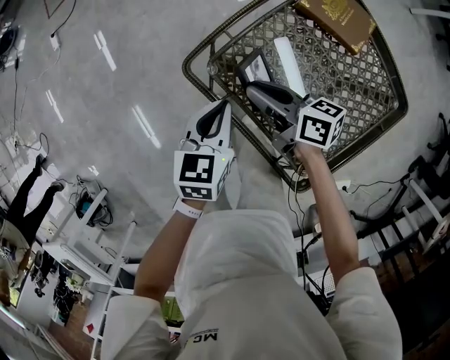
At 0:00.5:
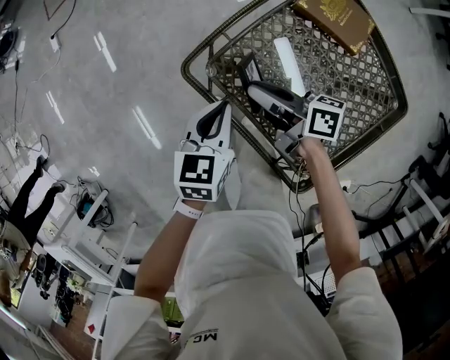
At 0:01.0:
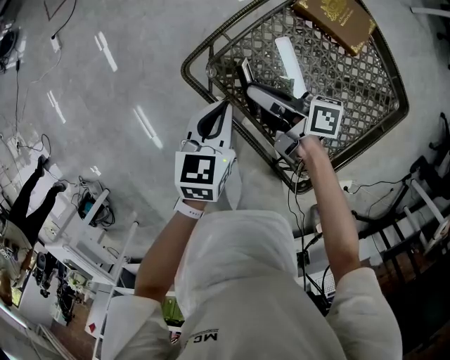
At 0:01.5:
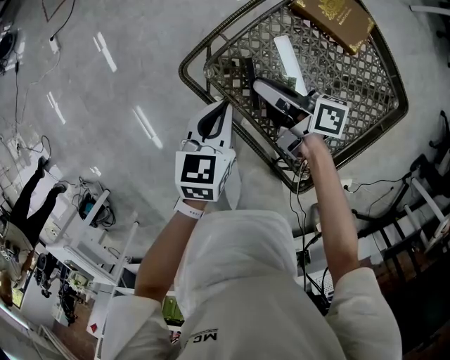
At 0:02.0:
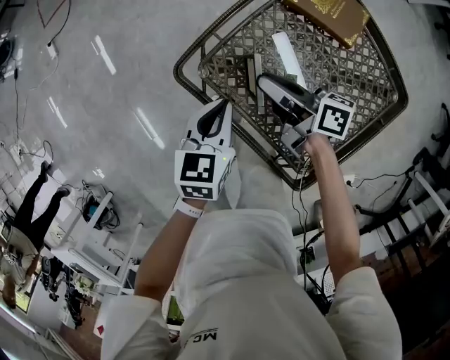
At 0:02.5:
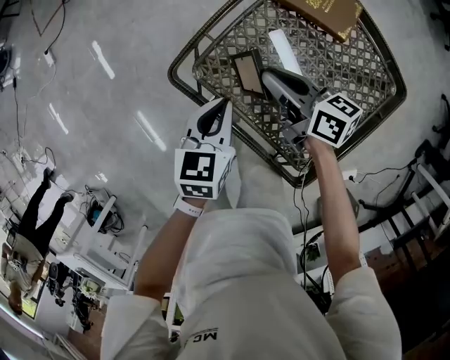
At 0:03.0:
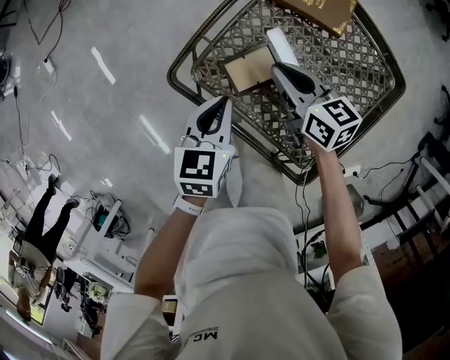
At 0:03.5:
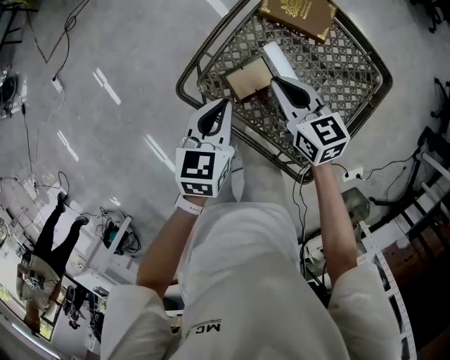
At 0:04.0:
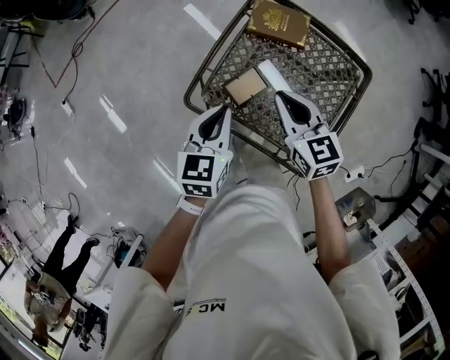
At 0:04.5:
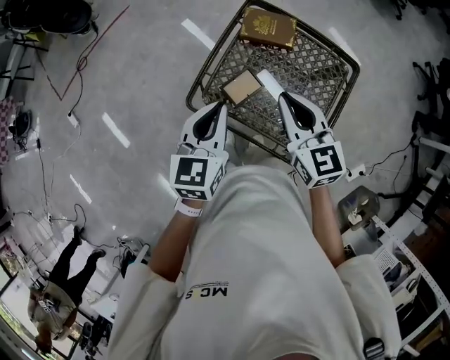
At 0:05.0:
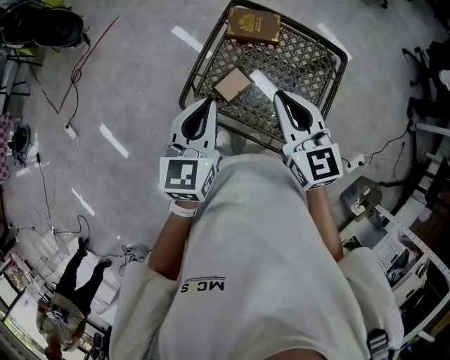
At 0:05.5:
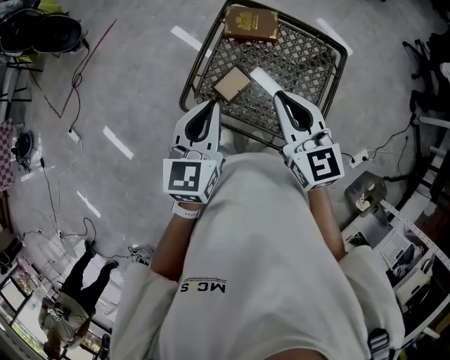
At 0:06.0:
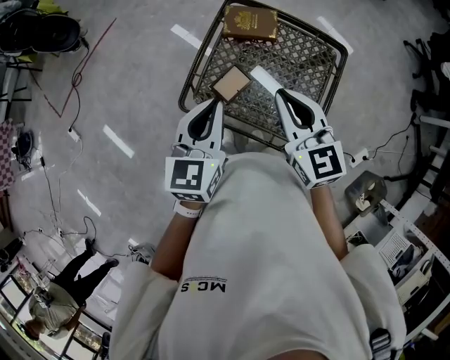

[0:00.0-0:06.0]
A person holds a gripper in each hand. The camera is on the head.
0:00.0 to 0:02.0: The right gripper travels to the right by approximately 5 cm.
0:02.0 to 0:04.0: Both grippers travel together upward, some 15 cm. The right gripper changes its angle by approximately 60 degrees.
0:04.0 to 0:06.0: The left gripper shifts roughly 10 cm upward. Meanwhile the right gripper shifts roughly 15 cm upward and backward.

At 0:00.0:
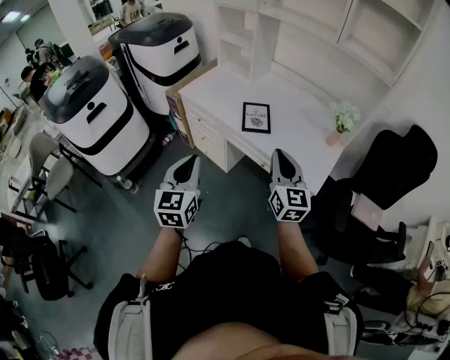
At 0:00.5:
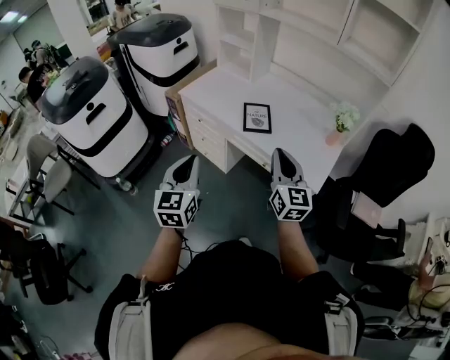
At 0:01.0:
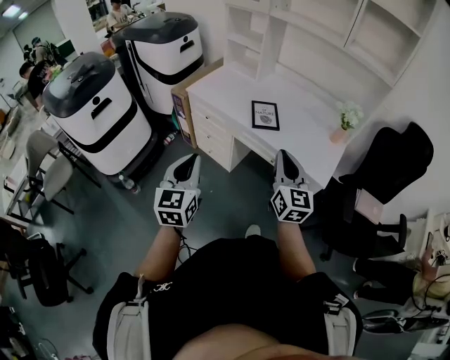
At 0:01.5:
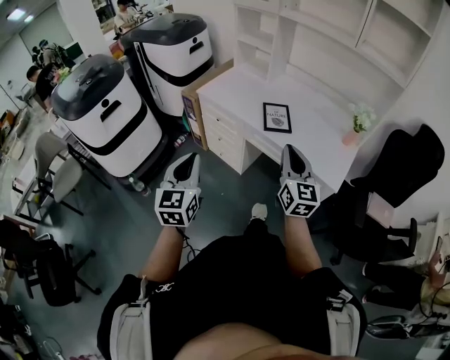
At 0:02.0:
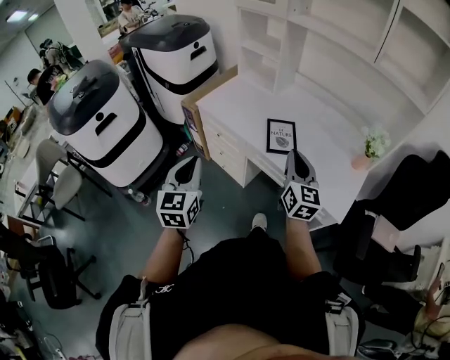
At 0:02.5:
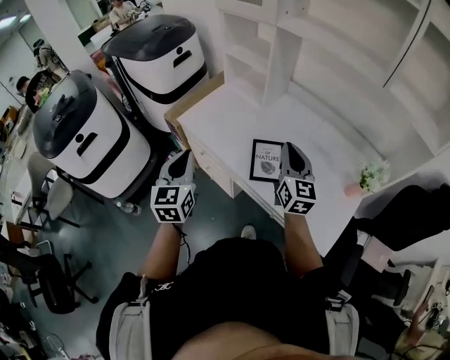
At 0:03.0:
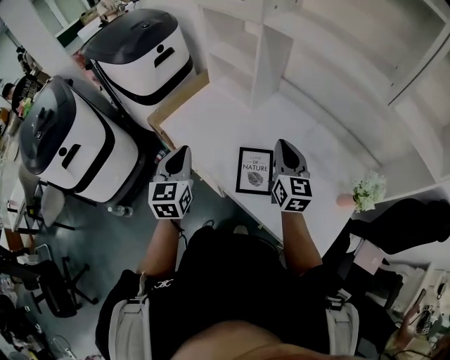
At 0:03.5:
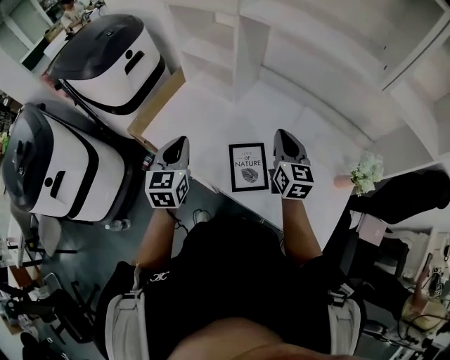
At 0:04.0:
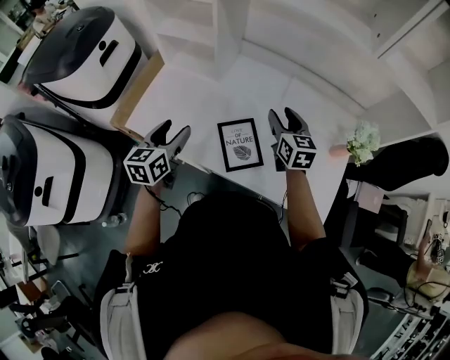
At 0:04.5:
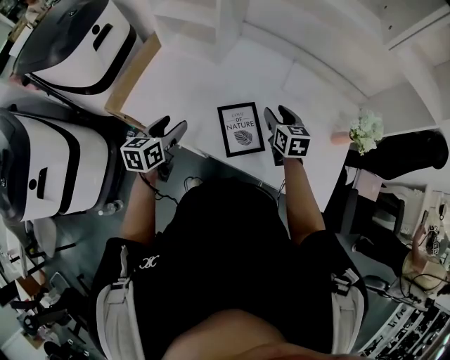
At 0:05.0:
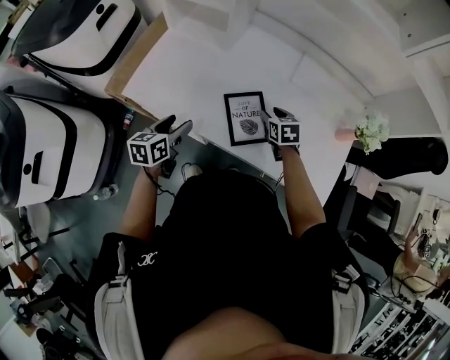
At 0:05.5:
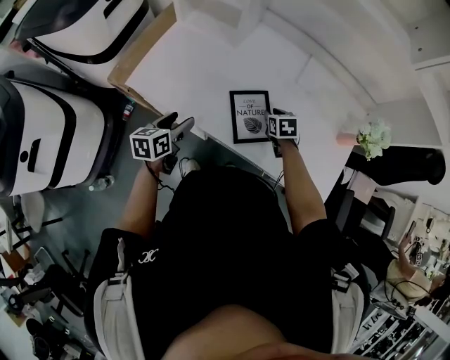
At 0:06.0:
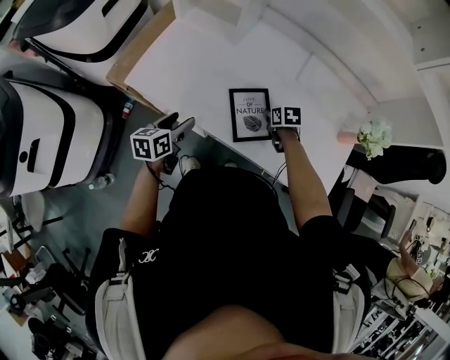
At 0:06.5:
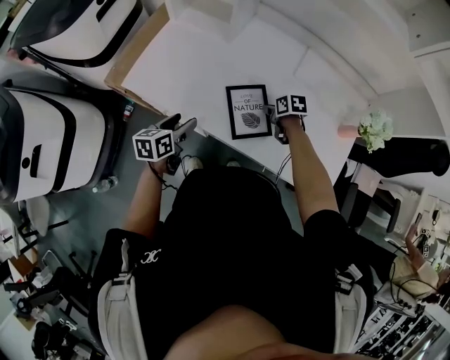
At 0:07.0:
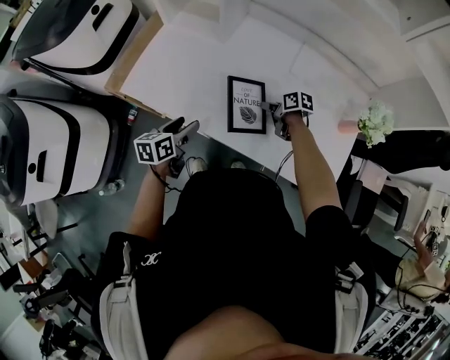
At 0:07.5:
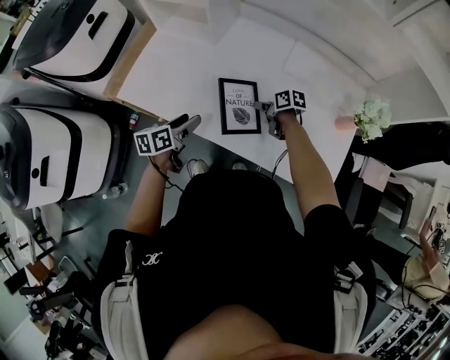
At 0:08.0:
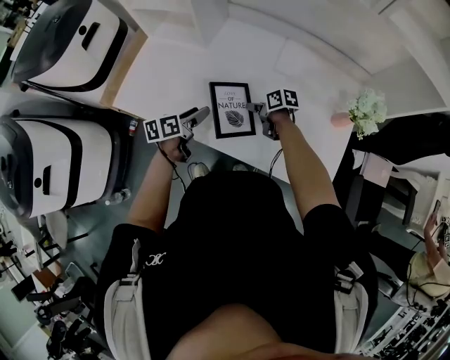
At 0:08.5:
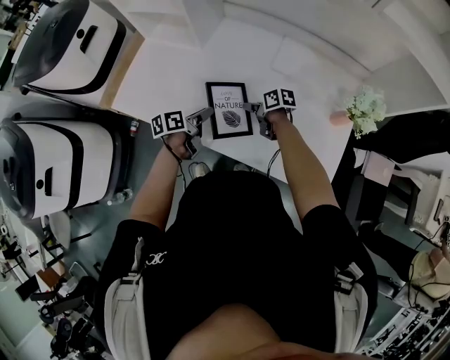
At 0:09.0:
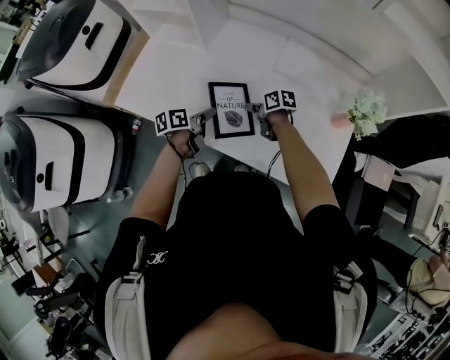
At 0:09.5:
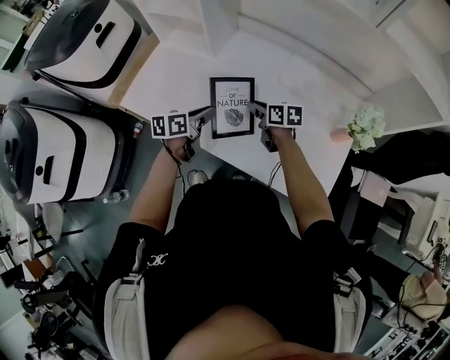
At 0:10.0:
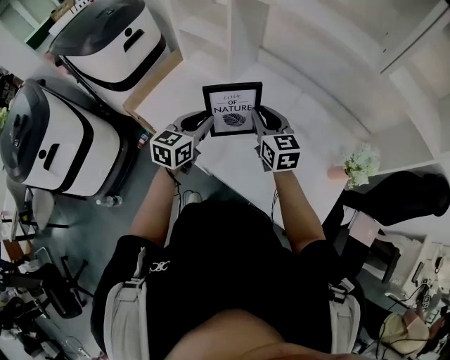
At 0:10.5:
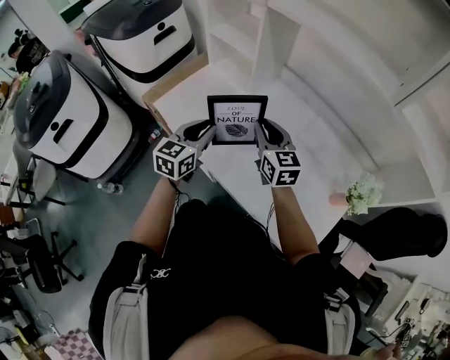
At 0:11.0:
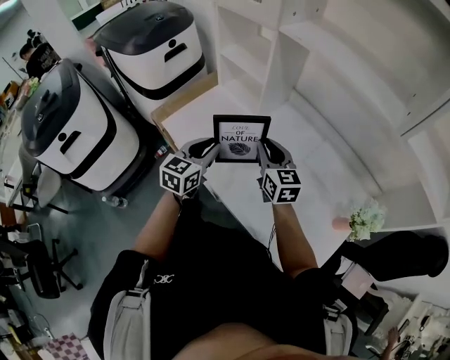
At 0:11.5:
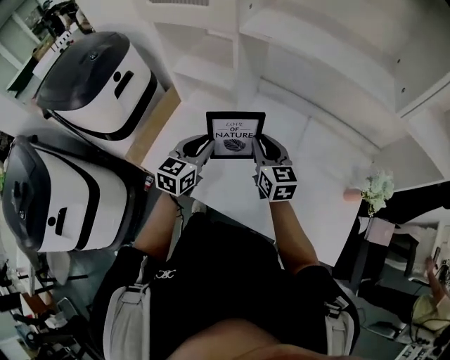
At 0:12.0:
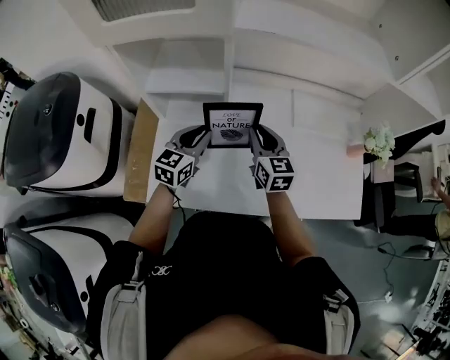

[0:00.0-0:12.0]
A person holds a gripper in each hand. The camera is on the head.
0:00.0 to 0:02.0: The left gripper moves forward and to the left, approximately 15 cm. The right gripper travels forward by some 15 cm.
0:02.0 to 0:04.0: The grippers both shift forward by about 35 cm. The left gripper changes its angle by some 30 degrees, and opens its fingers. Meanwhile the right gripper rotates some 20 degrees, and opens up.
0:04.0 to 0:06.0: The left gripper is displaced downward by approximately 15 cm, and turns by some 20 degrees. The right gripper heads downward, covering some 25 cm, angles its fingers downward, by some 40 degrees, and closes.
0:06.0 to 0:08.0: The right gripper changes its angle by approximately 30 degrees. The left gripper goes roughly 15 cm to the right.
0:08.0 to 0:10.0: The right gripper travels upward by some 25 cm, and rotates about 60 degrees. Meanwhile the left gripper shifts some 15 cm upward, swivels some 40 degrees, and closes its fingers.
0:10.0 to 0:12.0: The left gripper ends up roughly 20 cm from where it was, and rotates roughly 30 degrees; the right gripper shifts by roughly 15 cm, and changes its angle by some 40 degrees.

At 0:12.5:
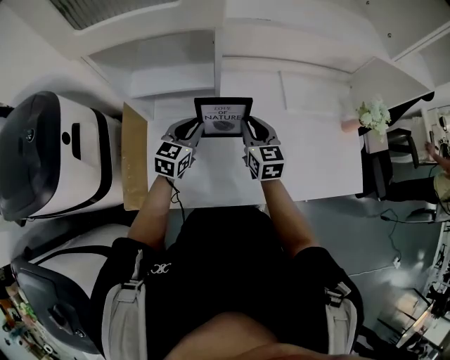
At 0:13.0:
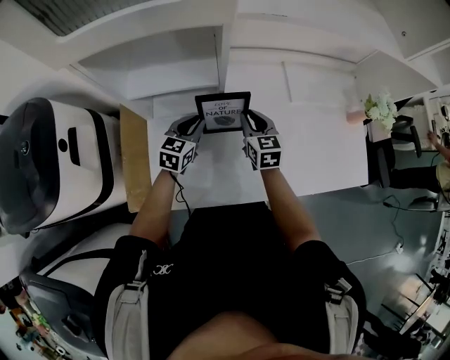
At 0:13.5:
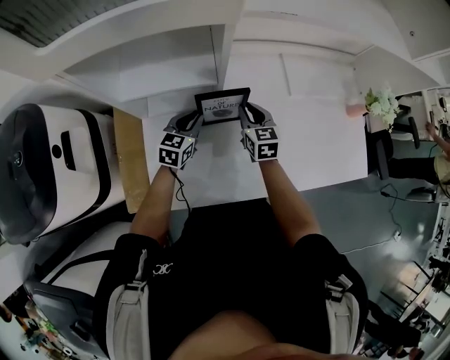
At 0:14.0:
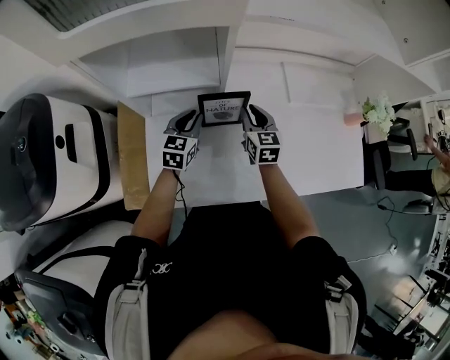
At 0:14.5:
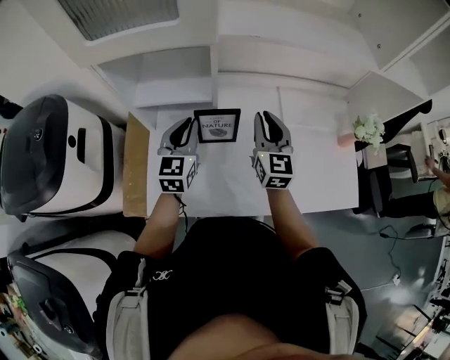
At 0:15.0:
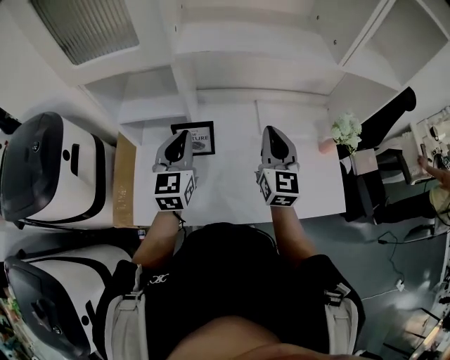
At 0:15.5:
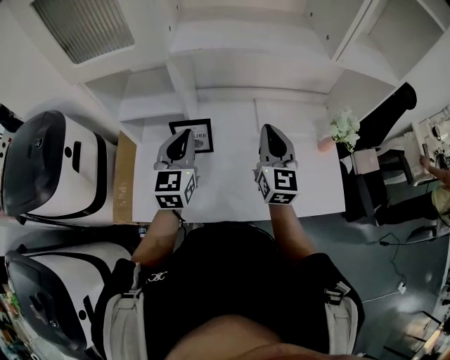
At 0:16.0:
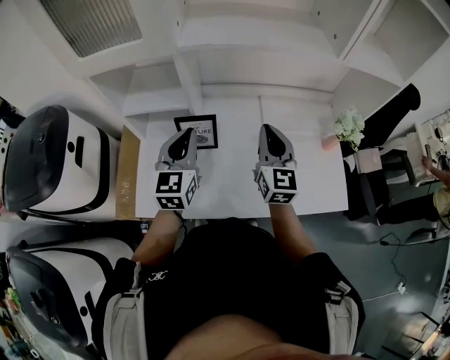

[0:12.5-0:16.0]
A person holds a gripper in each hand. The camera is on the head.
0:12.5 to 0:14.5: Both grippers travel together upward, approximately 10 cm. The left gripper changes its angle by approximately 20 degrees.
0:14.5 to 0:16.0: The left gripper goes roughly 15 cm to the right, upward and backward, while the right gripper is displaced to the right and backward by some 10 cm.

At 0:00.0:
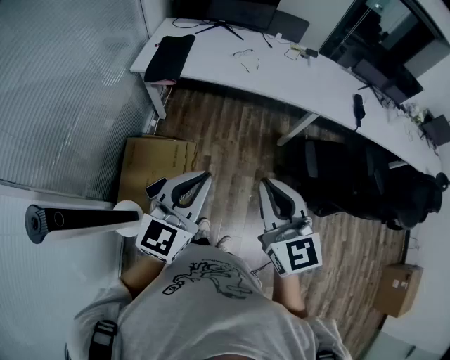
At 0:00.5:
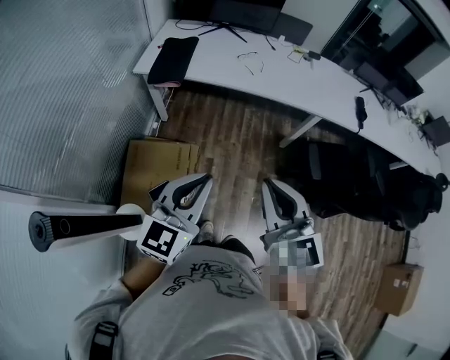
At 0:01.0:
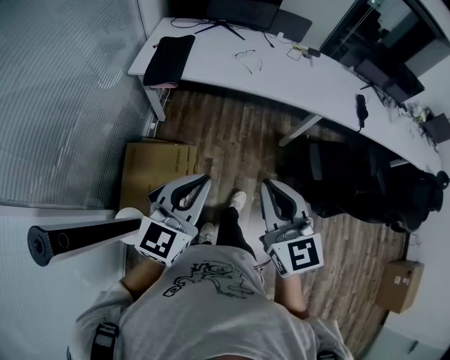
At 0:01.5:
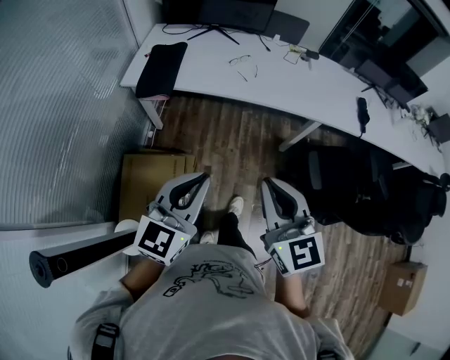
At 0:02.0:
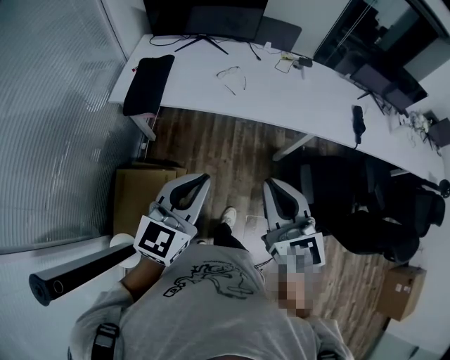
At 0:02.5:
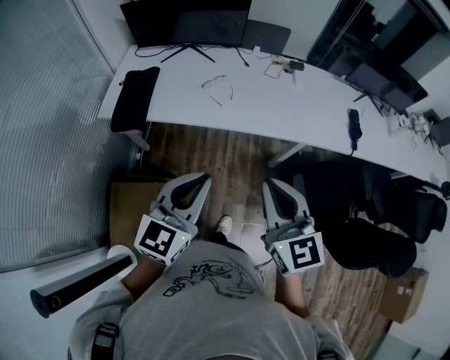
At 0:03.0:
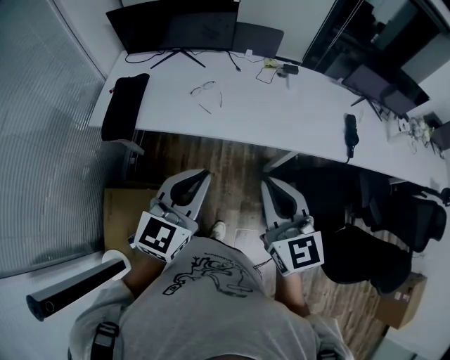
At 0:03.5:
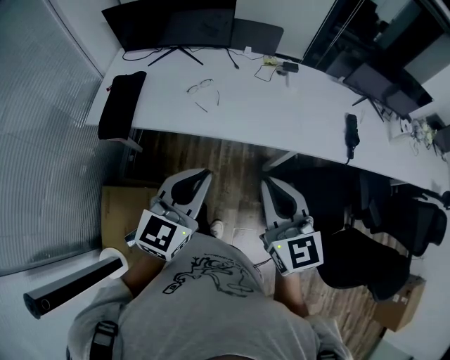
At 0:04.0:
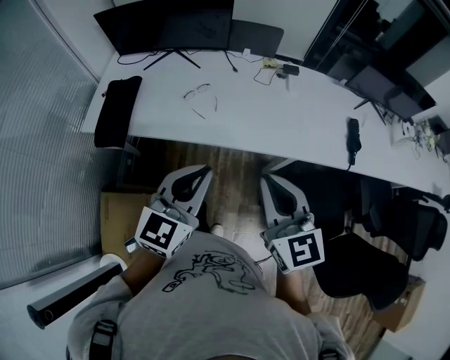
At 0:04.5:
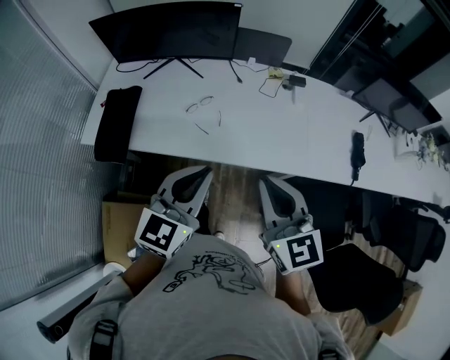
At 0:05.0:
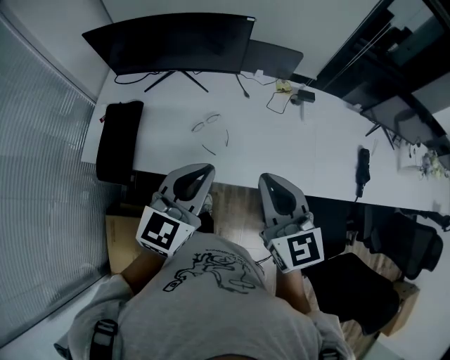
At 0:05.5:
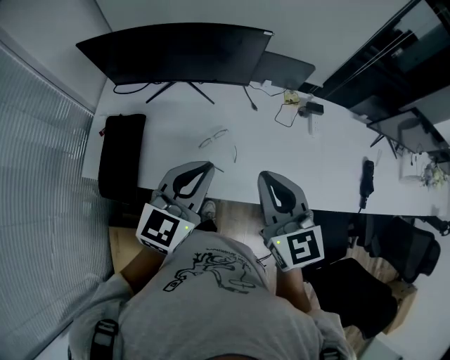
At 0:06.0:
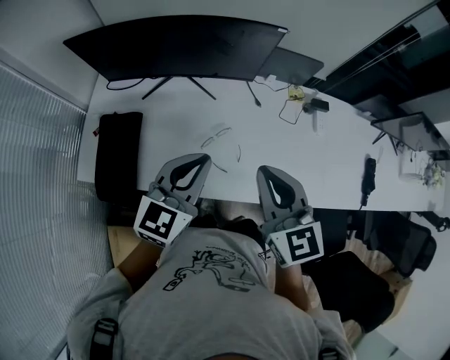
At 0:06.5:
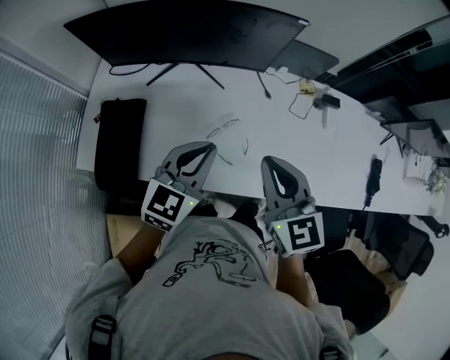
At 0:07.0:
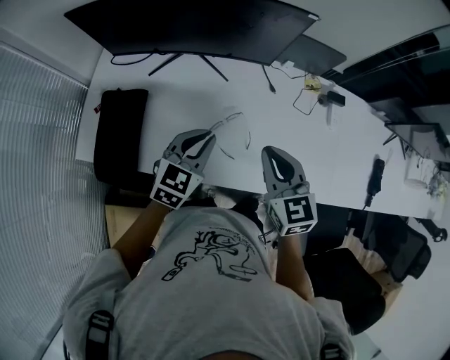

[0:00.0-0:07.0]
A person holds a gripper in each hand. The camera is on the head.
0:00.0 to 0:02.0: Both grippers move forward, some 20 cm.
0:02.0 to 0:03.5: Both grippers travel together forward and to the right, some 25 cm.
0:03.5 to 0:05.0: The two grippers go about 25 cm forward.
0:05.0 to 0:07.0: Both grippers move forward, downward and to the left, some 25 cm.
